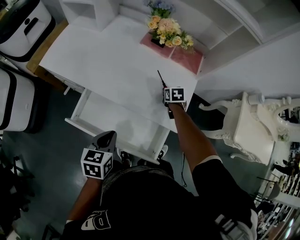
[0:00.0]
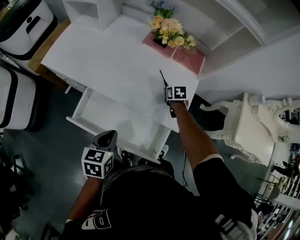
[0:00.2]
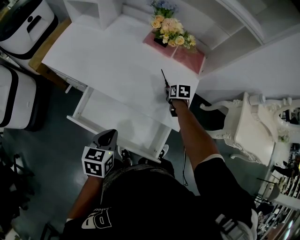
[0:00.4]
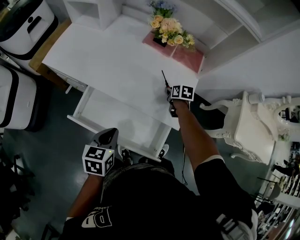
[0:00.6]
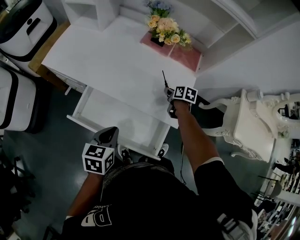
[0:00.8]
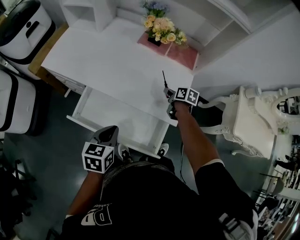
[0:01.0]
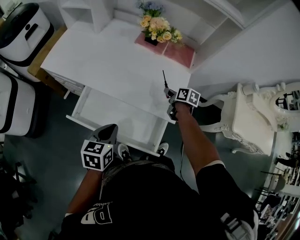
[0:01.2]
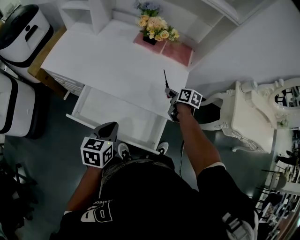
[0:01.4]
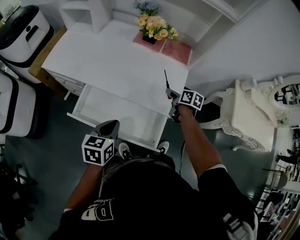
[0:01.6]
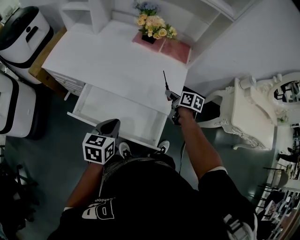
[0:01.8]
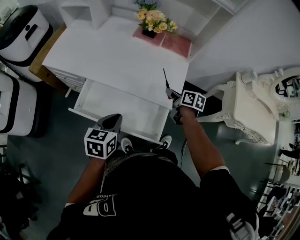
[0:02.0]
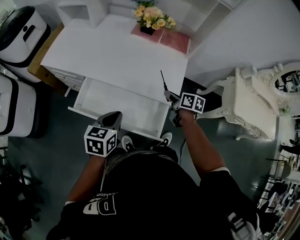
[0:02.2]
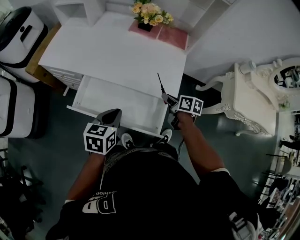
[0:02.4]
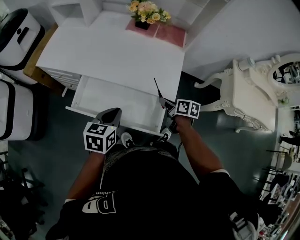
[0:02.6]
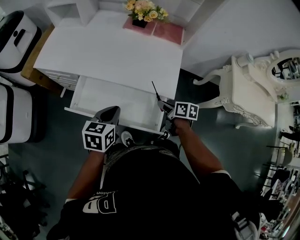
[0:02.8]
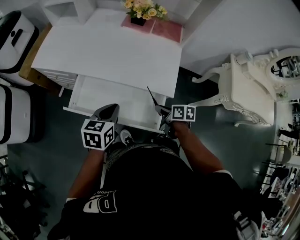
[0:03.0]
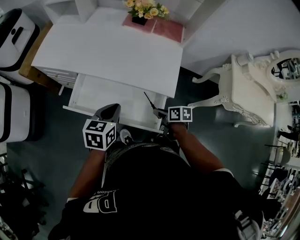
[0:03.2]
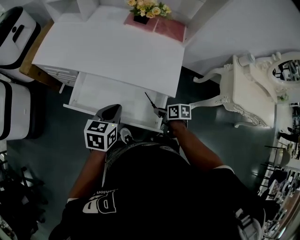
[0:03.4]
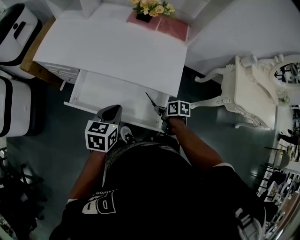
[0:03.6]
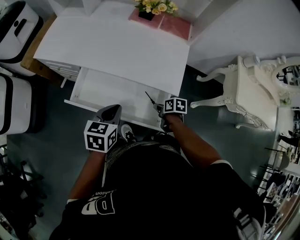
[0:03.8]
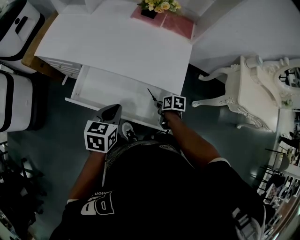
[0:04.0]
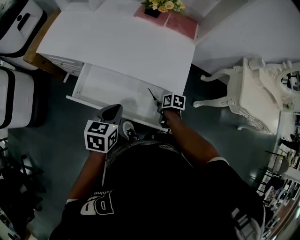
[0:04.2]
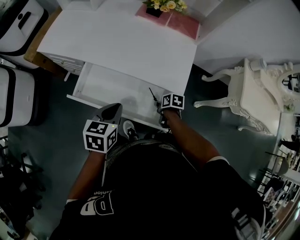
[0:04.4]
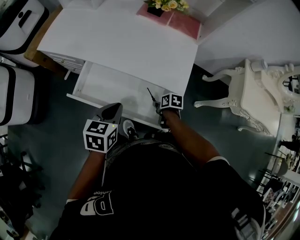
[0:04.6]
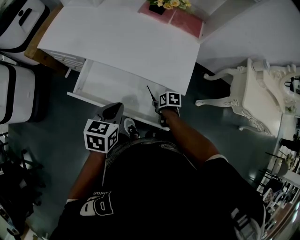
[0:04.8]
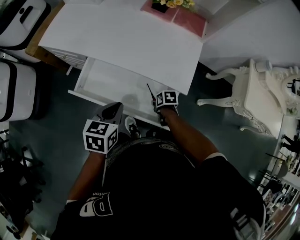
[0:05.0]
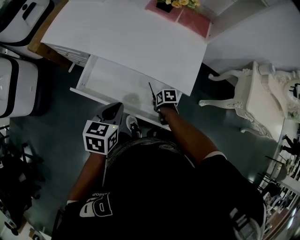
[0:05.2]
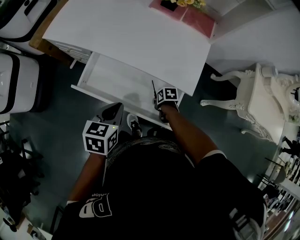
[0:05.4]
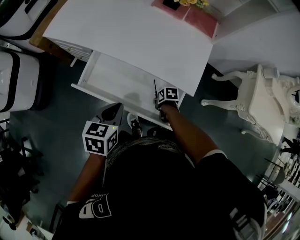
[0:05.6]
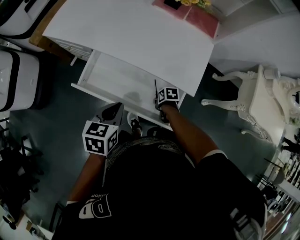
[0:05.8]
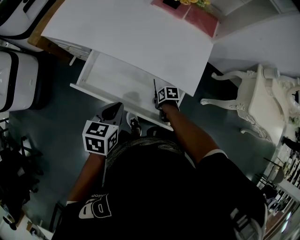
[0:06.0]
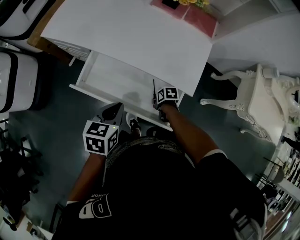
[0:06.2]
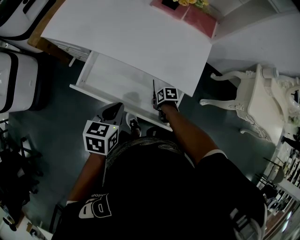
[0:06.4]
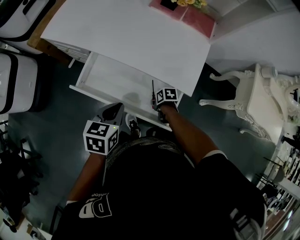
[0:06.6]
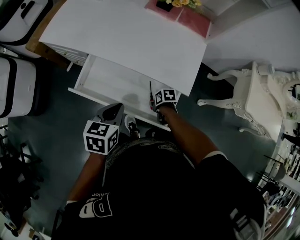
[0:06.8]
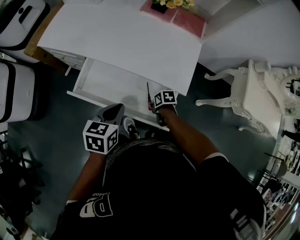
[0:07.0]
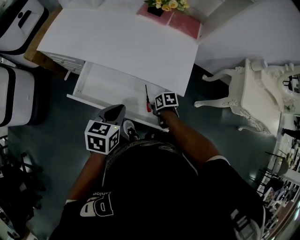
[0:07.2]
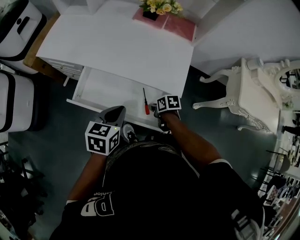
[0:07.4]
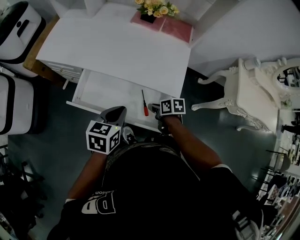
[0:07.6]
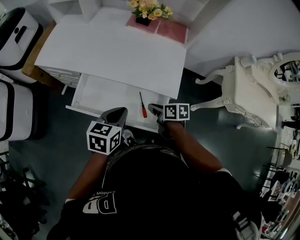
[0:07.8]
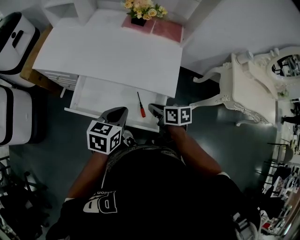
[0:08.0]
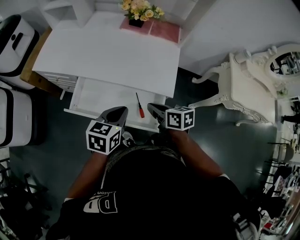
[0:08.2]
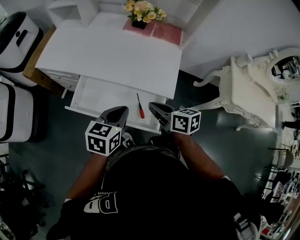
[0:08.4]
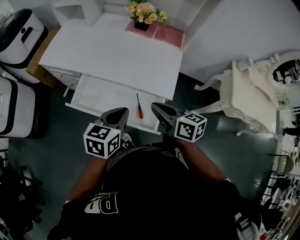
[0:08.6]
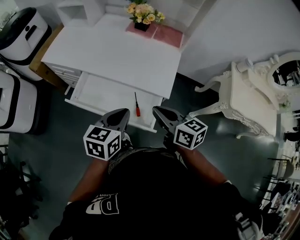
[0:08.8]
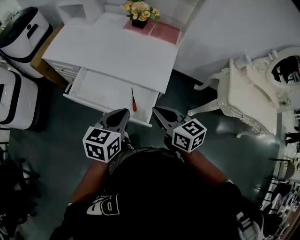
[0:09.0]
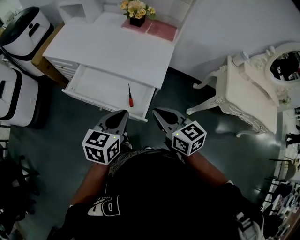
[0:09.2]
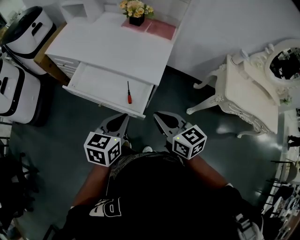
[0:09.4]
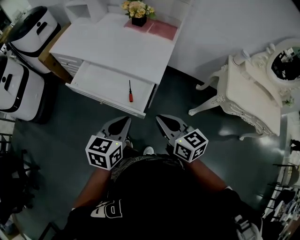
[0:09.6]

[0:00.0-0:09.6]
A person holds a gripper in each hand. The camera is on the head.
0:00.0 to 0:01.6: The right gripper is displaced backward and upward by about 15 cm, and swivels some 40 degrees.
0:01.6 to 0:03.2: The right gripper travels backward by some 20 cm.
0:03.2 to 0:04.8: The right gripper goes about 10 cm downward.
0:04.8 to 0:06.4: The right gripper shifts by about 5 cm.
0:06.4 to 0:08.0: The left gripper shifts by roughly 10 cm; the right gripper heads upward, covering roughly 25 cm, and rotates approximately 40 degrees.
0:08.0 to 0:09.6: The left gripper travels backward and to the right by roughly 25 cm. The right gripper shifts approximately 30 cm backward, upward and to the right, and changes its angle by some 40 degrees.

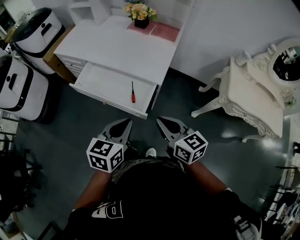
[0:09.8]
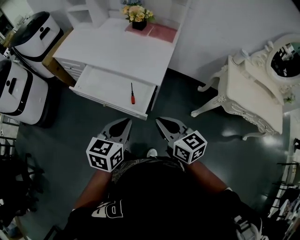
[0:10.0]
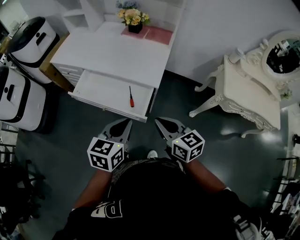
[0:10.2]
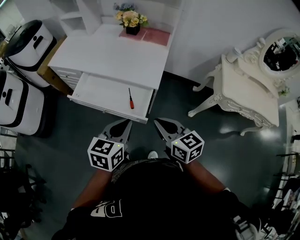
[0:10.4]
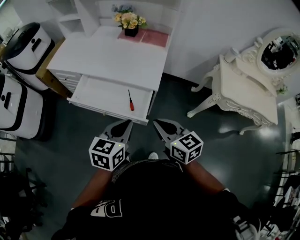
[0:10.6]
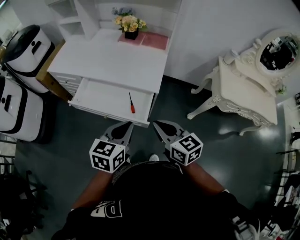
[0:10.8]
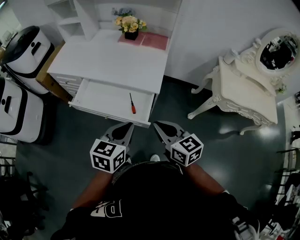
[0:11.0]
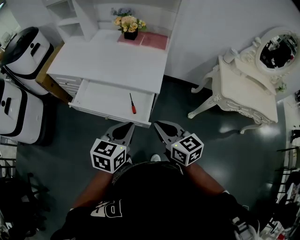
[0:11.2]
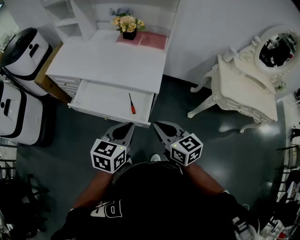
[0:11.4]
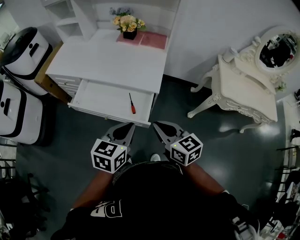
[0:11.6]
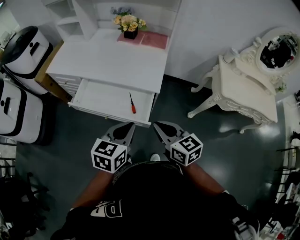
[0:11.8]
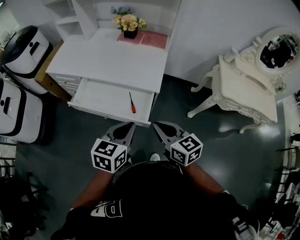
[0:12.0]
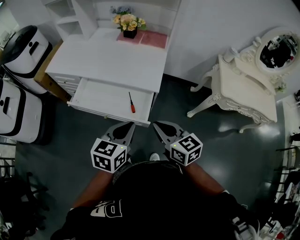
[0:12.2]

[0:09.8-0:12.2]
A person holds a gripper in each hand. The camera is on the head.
0:09.8 to 0:11.0: The right gripper changes place by approximately 5 cm.
0:11.0 to 0:12.2: Neither gripper changes place.

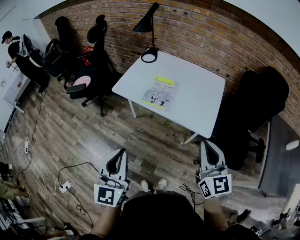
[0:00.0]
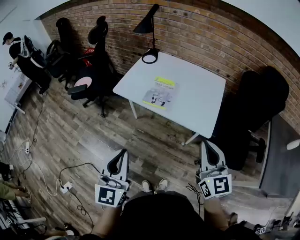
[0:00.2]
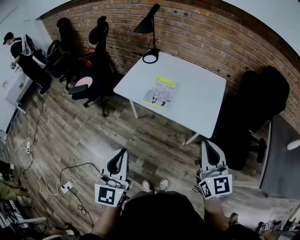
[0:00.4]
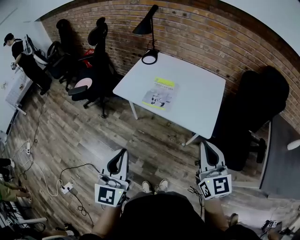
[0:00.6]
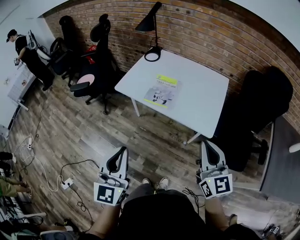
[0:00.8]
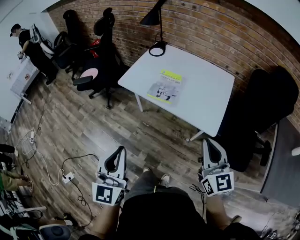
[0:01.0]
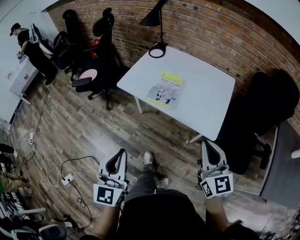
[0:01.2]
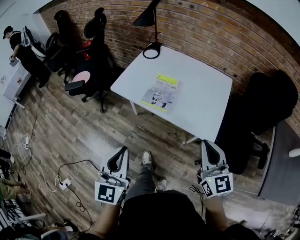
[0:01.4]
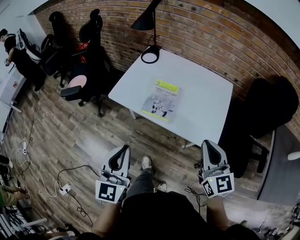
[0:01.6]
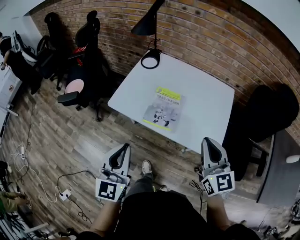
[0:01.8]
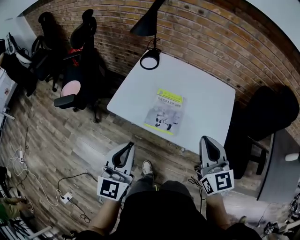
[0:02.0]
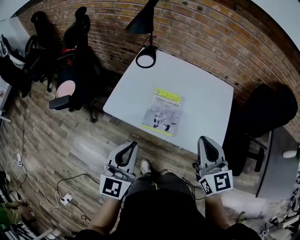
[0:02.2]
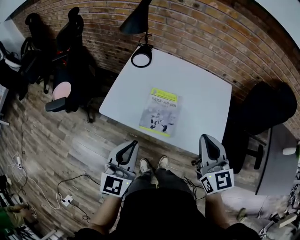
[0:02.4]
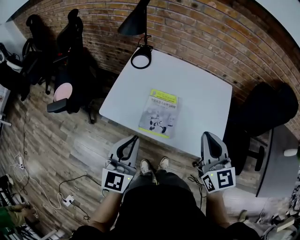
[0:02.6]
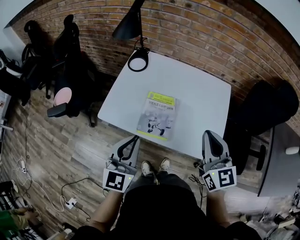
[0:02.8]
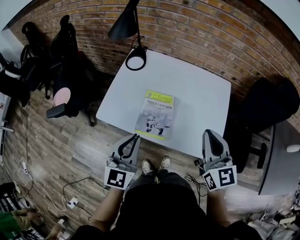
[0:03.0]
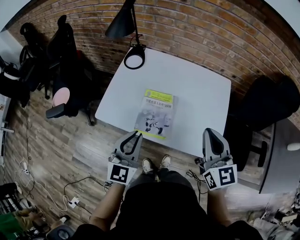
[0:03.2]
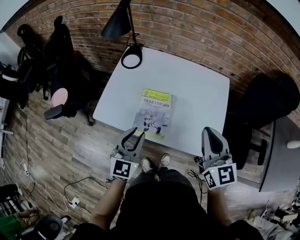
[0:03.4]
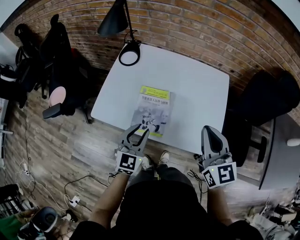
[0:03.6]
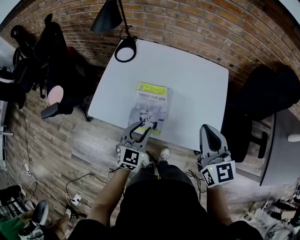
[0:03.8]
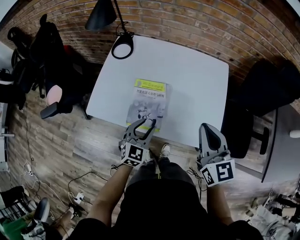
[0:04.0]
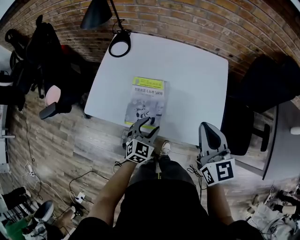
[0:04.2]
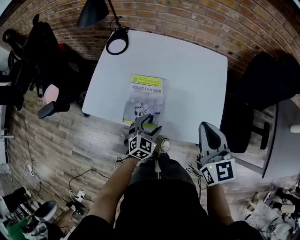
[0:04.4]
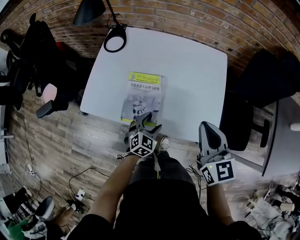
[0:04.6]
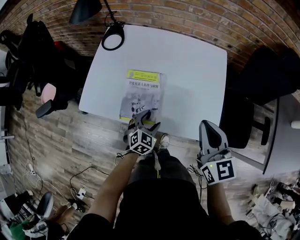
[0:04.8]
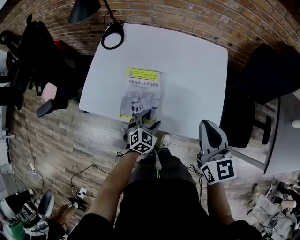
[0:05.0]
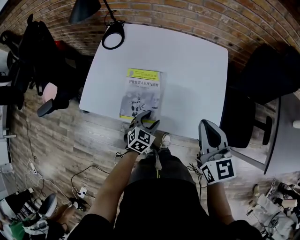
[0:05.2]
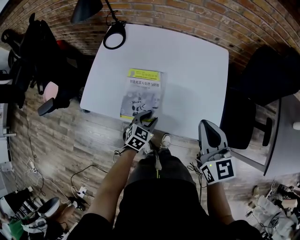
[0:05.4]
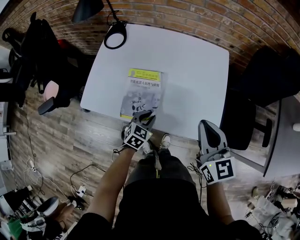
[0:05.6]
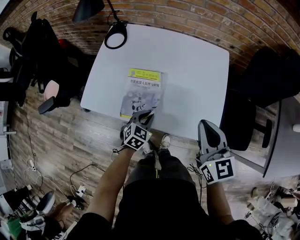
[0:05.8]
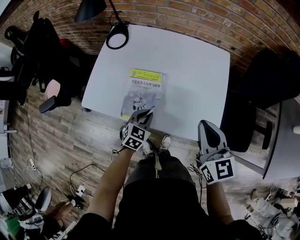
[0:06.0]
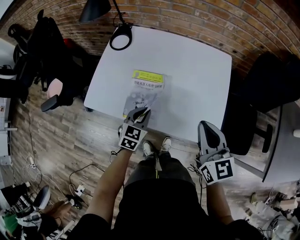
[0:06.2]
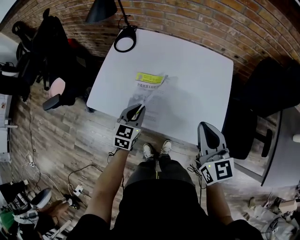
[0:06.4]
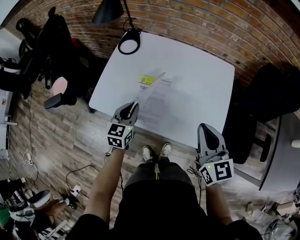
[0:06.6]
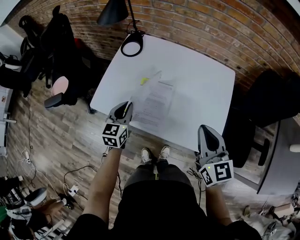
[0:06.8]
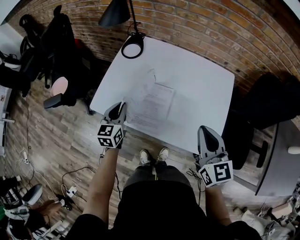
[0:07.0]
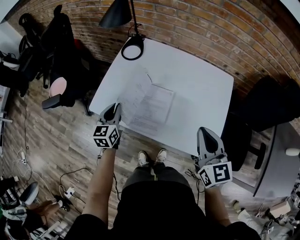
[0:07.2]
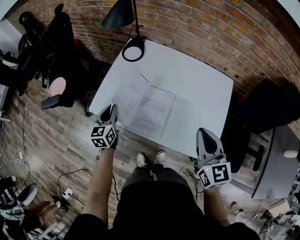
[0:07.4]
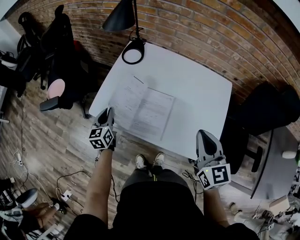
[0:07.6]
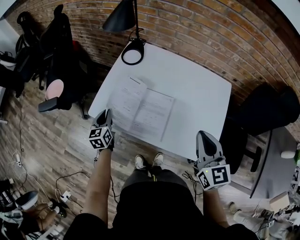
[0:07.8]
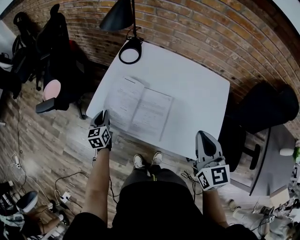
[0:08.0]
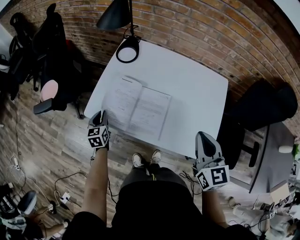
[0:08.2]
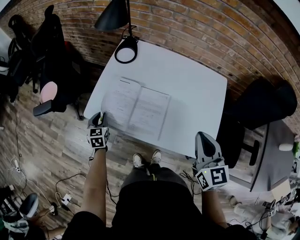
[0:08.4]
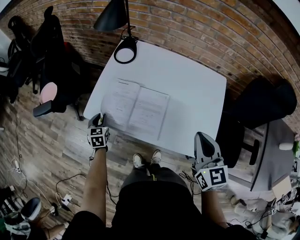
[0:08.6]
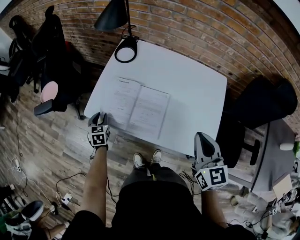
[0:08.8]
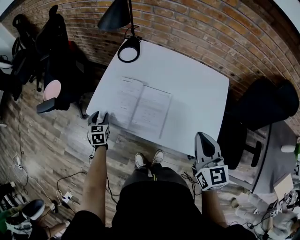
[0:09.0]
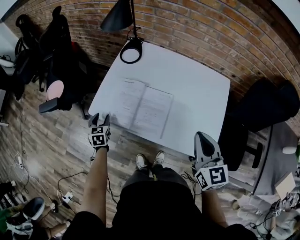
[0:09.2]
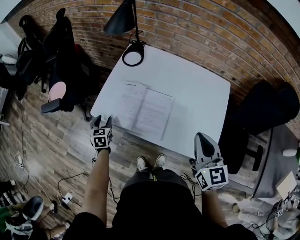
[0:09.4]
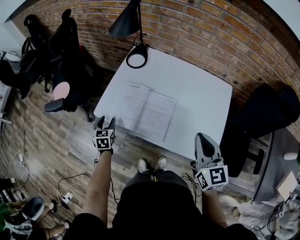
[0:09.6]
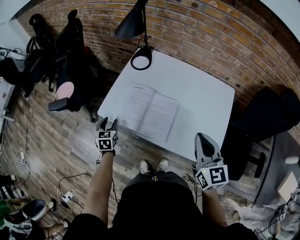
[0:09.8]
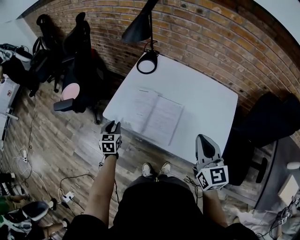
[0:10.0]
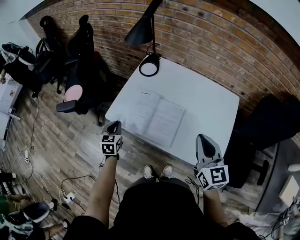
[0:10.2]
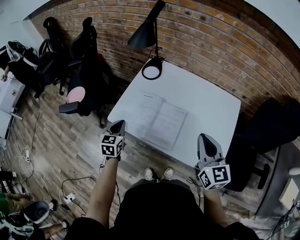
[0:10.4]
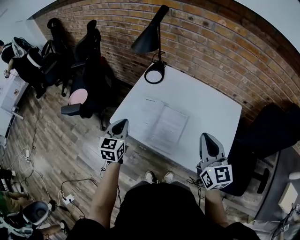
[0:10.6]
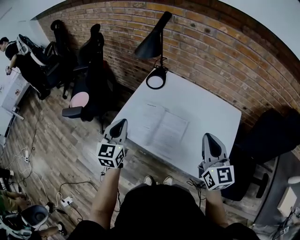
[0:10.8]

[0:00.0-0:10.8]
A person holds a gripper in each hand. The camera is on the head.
0:00.0 to 0:01.6: Both grippers travel together forward, roughly 10 cm.
0:01.6 to 0:03.0: The grippers both shift forward by about 20 cm.
0:03.0 to 0:04.6: The right gripper moves downward, approximately 5 cm, while the left gripper goes roughly 30 cm downward and to the right, angles its fingers downward, by roughly 30 degrees, and opens.
0:04.6 to 0:06.2: The left gripper moves upward, approximately 5 cm, and closes.
0:06.2 to 0:07.8: The right gripper ends up roughly 5 cm from where it was, while the left gripper heads to the left, covering roughly 25 cm, and turns by about 40 degrees.
0:07.8 to 0:09.2: The left gripper heads downward, covering some 5 cm, changes its angle by roughly 20 degrees, and opens up.
0:09.2 to 0:10.8: The right gripper is displaced upward by approximately 5 cm. The left gripper moves upward, about 25 cm, swivels approximately 30 degrees, and closes up.

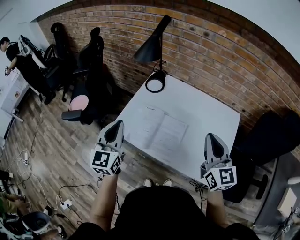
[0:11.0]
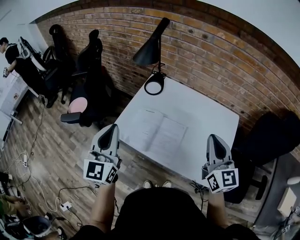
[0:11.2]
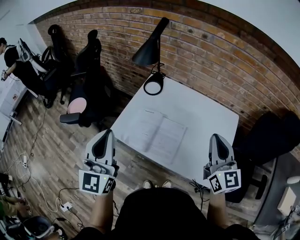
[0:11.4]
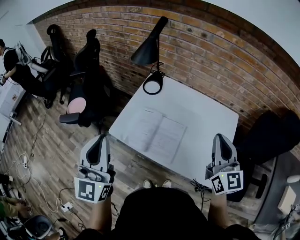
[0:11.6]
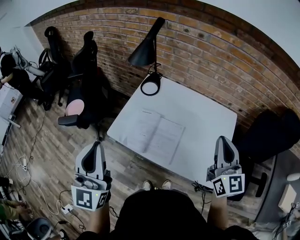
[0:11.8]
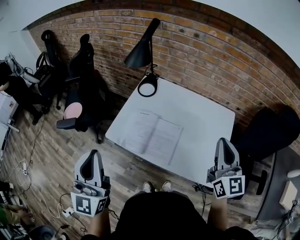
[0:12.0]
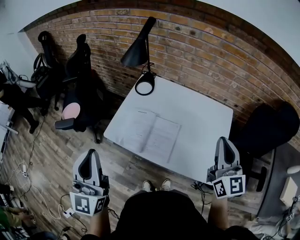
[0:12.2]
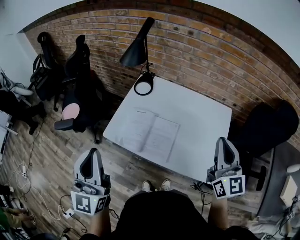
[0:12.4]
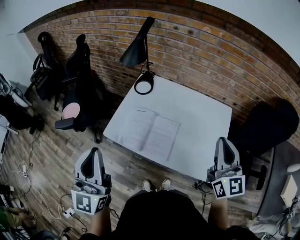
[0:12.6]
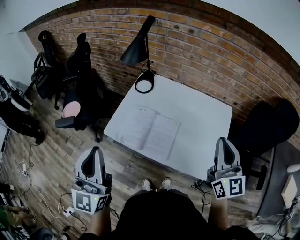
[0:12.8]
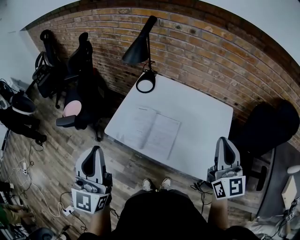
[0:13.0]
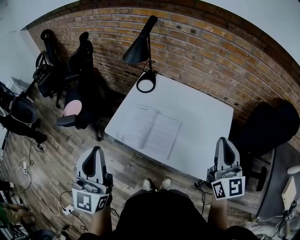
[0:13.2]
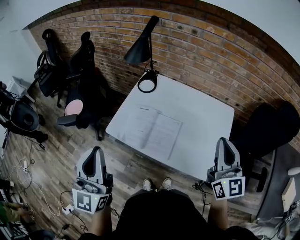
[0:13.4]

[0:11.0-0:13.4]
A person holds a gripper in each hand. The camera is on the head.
0:11.0 to 0:12.2: The left gripper heads upward and backward, covering about 15 cm, while the right gripper heads to the right and upward, covering some 5 cm.
0:12.2 to 0:13.4: There are only small adjustments of the grippers.
